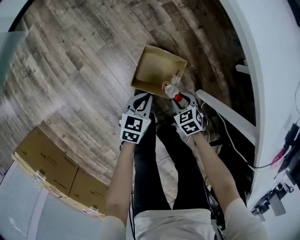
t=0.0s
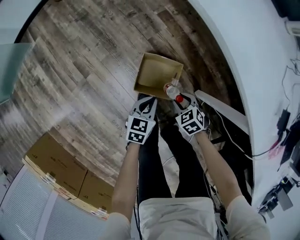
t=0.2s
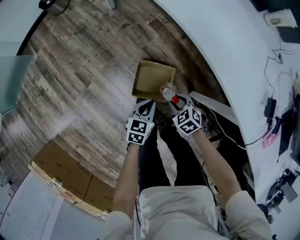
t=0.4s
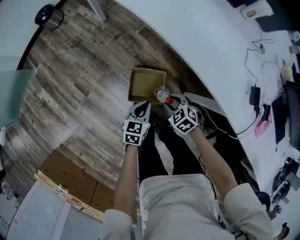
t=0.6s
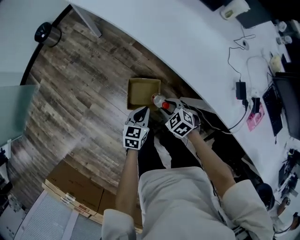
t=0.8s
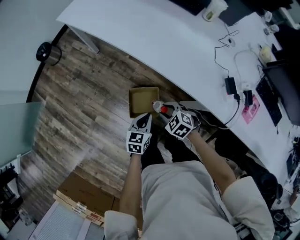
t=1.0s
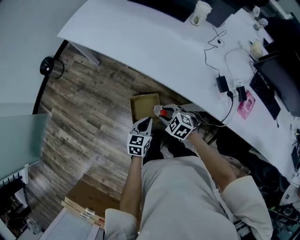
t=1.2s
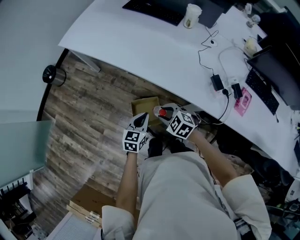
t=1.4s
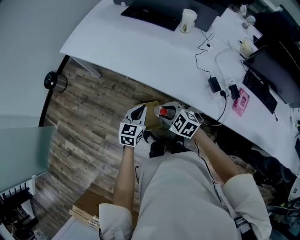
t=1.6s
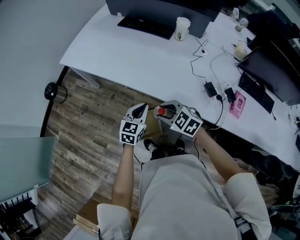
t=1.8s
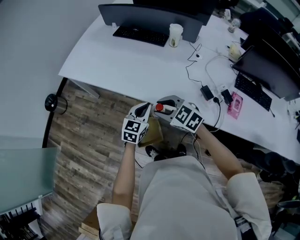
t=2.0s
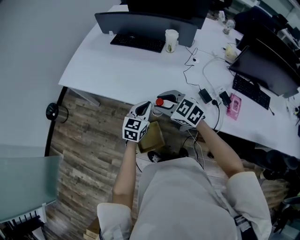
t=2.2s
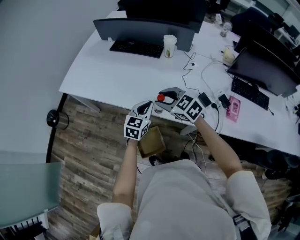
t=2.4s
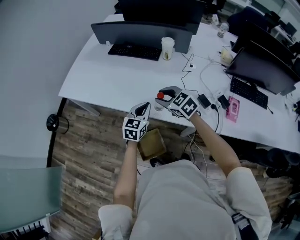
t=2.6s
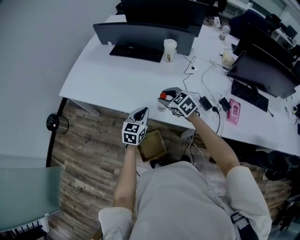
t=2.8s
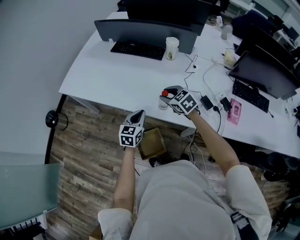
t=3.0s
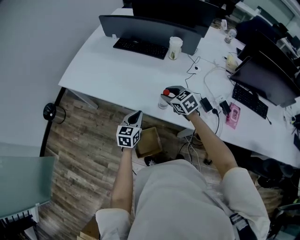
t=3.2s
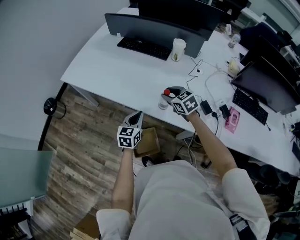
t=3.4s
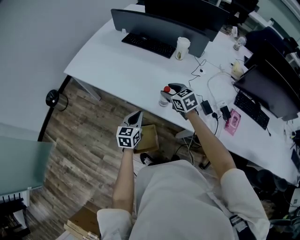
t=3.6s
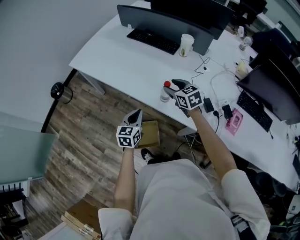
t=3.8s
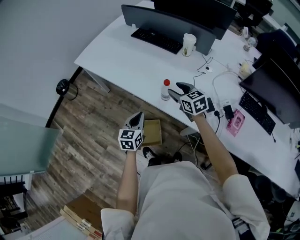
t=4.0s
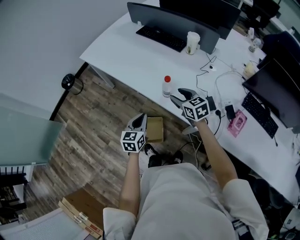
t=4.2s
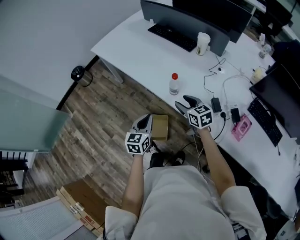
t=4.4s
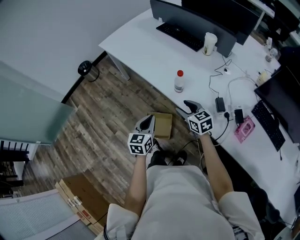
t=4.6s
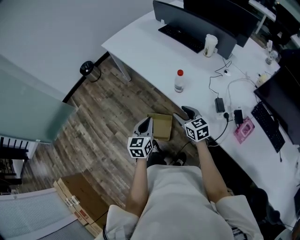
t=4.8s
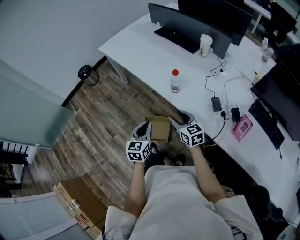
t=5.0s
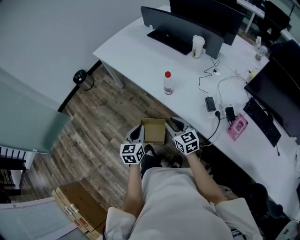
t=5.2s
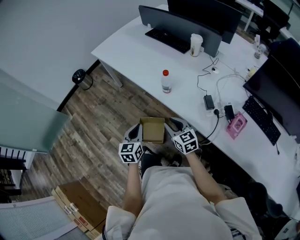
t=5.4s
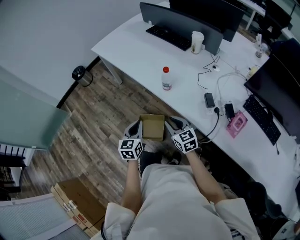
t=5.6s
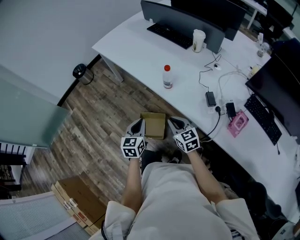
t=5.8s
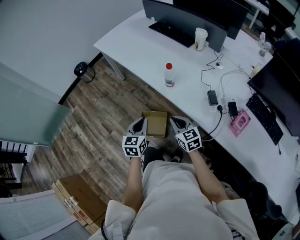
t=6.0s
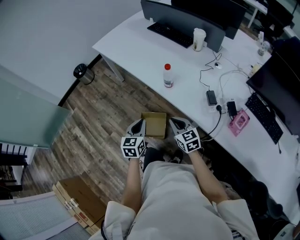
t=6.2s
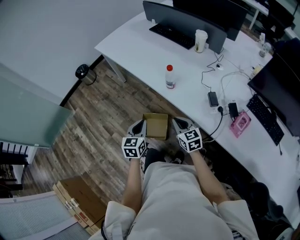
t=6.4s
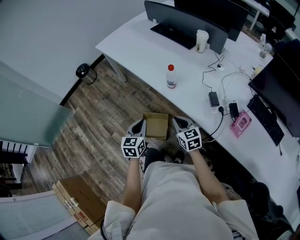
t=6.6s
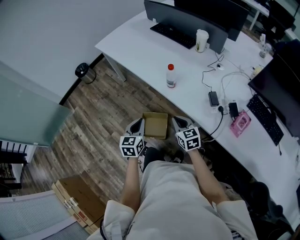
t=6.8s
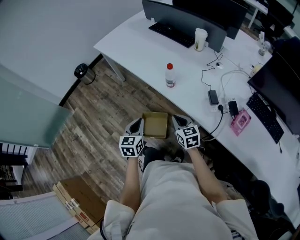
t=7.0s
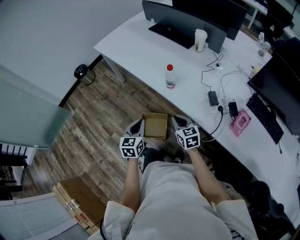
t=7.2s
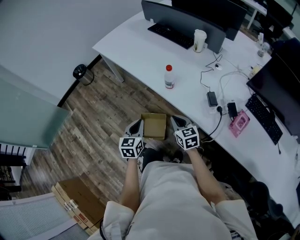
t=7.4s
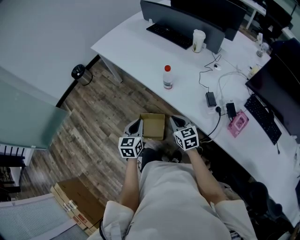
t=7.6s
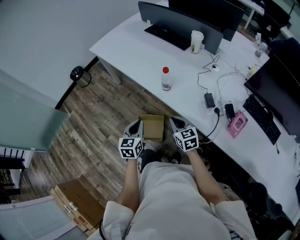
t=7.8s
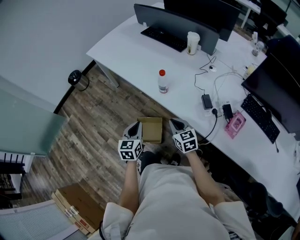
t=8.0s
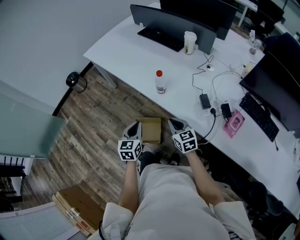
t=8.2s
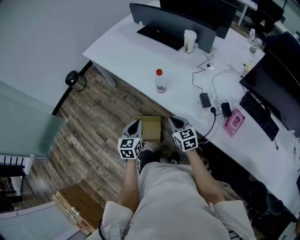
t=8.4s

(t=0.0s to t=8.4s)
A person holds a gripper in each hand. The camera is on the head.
t=0.0s - t=1.4s: The grippers both shift upward by roughly 40 cm. The left gripper turns by approximately 20 degrees.
t=1.4s - t=2.8s: The left gripper shifts approximately 20 cm forward and upward. Meanwhile the right gripper moves forward, upward and to the right, about 25 cm, and changes its angle by some 30 degrees.
t=2.8s - t=4.2s: The left gripper moves backward, some 15 cm, and rotates roughly 30 degrees; the right gripper travels backward by approximately 5 cm.
t=4.2s - t=5.6s: The right gripper moves backward, roughly 15 cm, and closes up; the left gripper moves backward, about 10 cm.
t=5.6s - t=7.0s: The right gripper closes.
t=7.0s - t=8.4s: The grippers make only small movements.

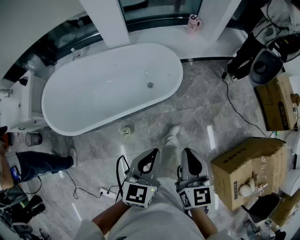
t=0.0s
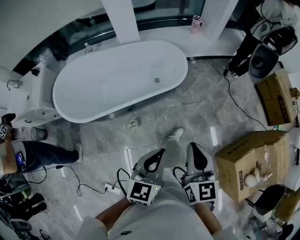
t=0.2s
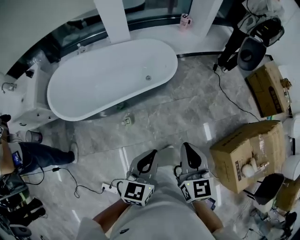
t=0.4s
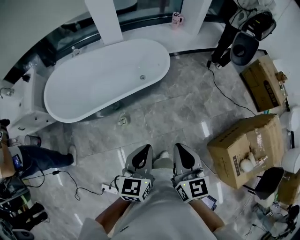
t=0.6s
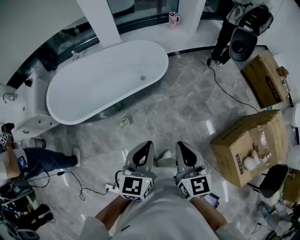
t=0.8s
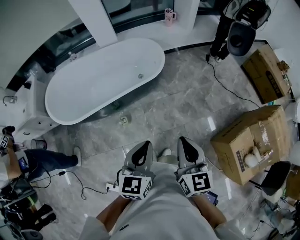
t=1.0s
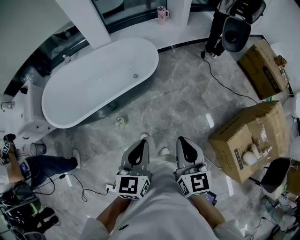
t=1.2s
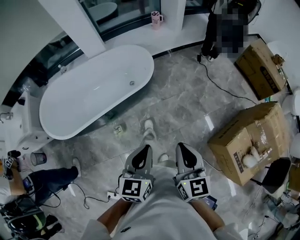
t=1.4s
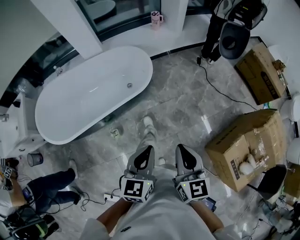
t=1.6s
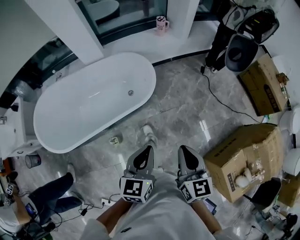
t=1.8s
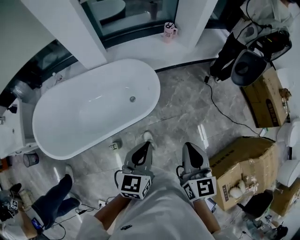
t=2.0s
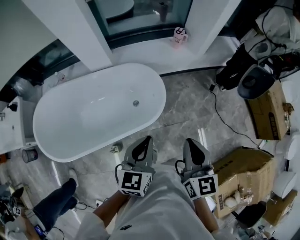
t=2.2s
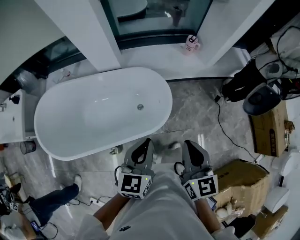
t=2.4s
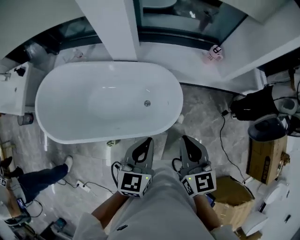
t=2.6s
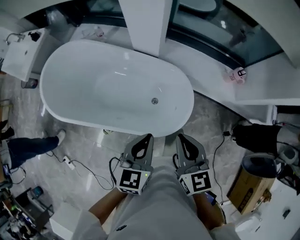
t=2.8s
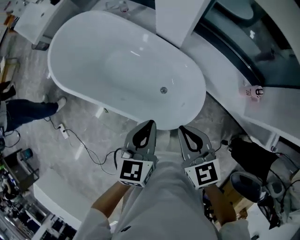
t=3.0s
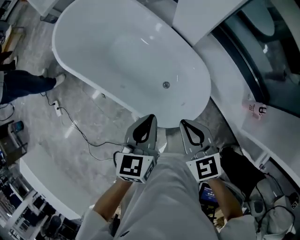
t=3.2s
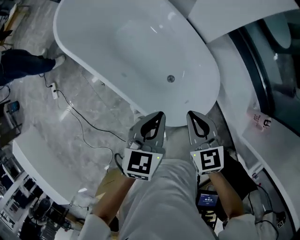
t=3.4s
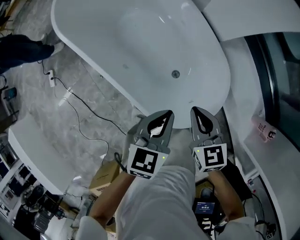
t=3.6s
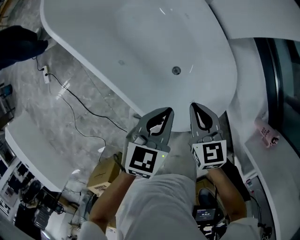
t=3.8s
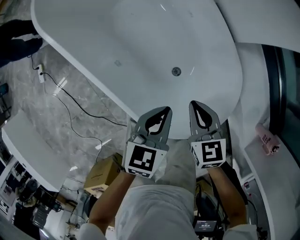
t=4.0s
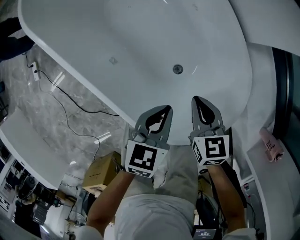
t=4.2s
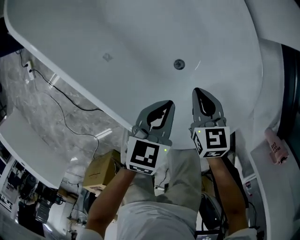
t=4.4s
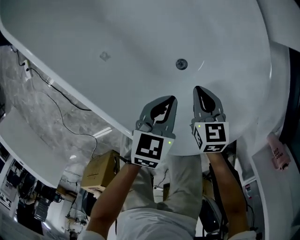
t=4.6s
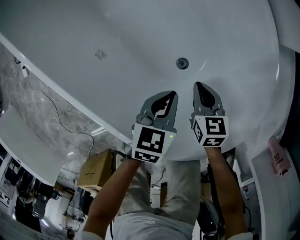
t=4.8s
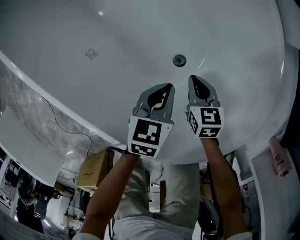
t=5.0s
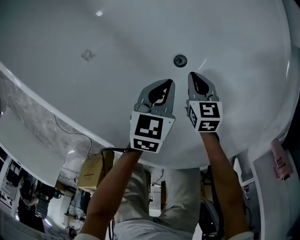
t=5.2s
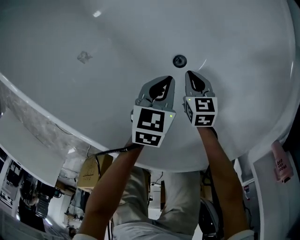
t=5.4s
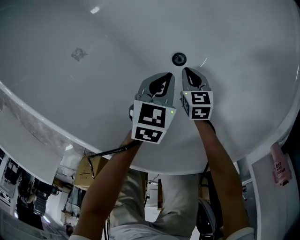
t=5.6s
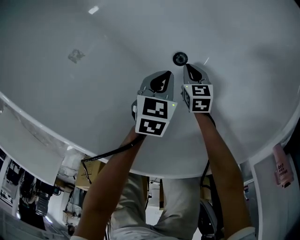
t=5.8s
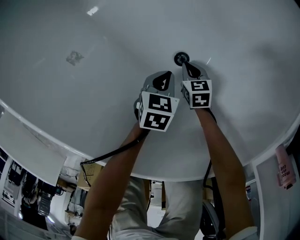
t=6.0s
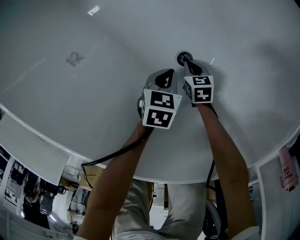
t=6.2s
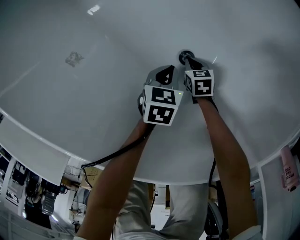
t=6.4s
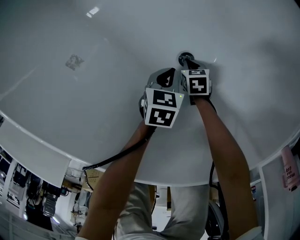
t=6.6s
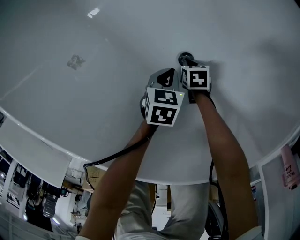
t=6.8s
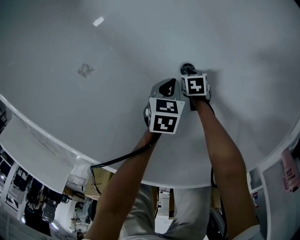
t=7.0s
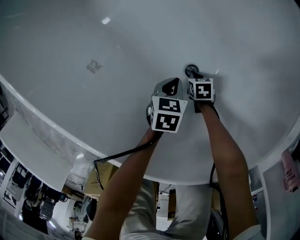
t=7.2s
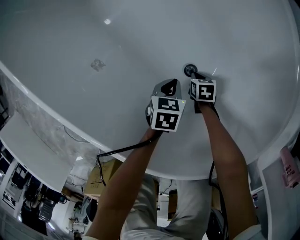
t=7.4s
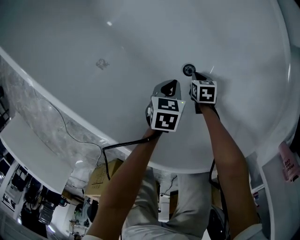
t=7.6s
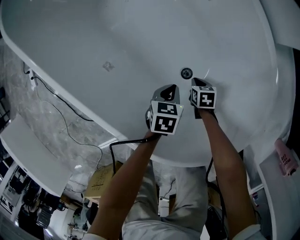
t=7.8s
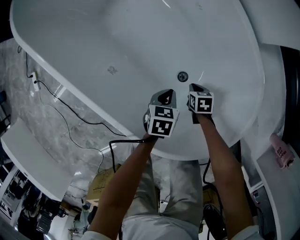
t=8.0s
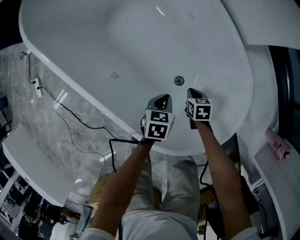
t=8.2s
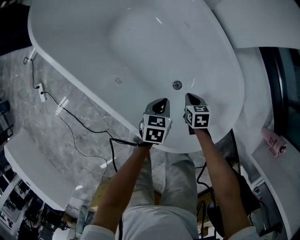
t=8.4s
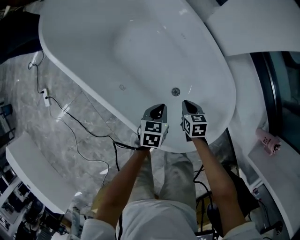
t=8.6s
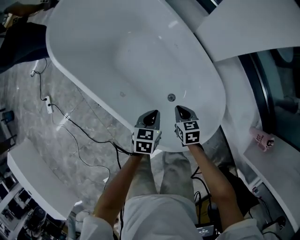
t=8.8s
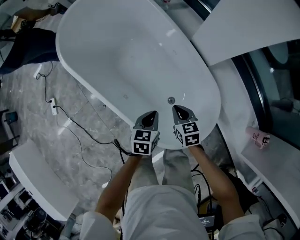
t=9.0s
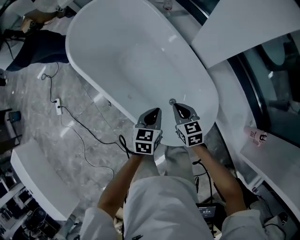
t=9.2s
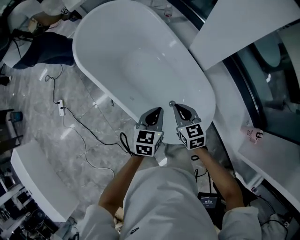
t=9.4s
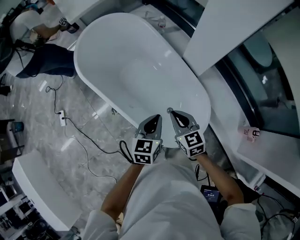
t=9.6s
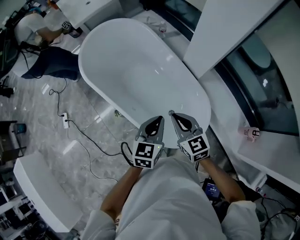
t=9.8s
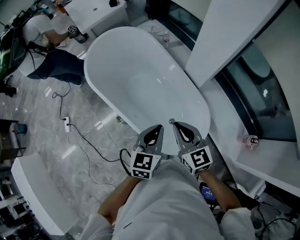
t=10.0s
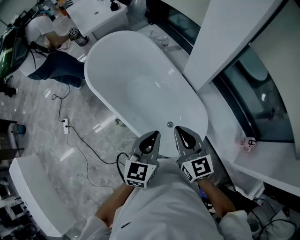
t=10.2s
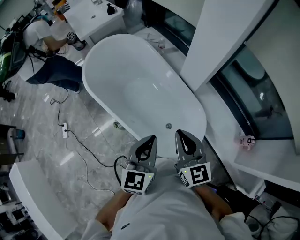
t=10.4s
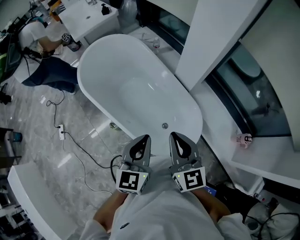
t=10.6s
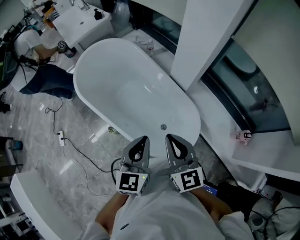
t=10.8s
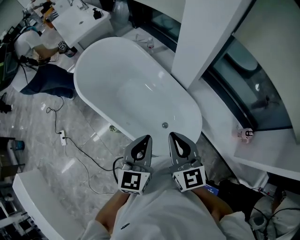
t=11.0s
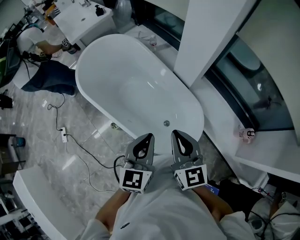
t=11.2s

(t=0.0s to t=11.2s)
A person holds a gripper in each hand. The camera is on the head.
t=0.0s - t=1.6s: Both grippers move to the right and backward, some 15 cm.
t=1.6s - t=3.2s: The pair of grippers is taken roughly 60 cm. The left gripper turns by approximately 70 degrees; the right gripper rotates roughly 90 degrees.
t=3.2s - t=4.8s: Both grippers move downward, approximately 50 cm. The right gripper turns by approximately 20 degrees.
t=4.8s - t=6.4s: Both grippers travel together downward, some 25 cm. The right gripper changes its angle by roughly 20 degrees.
t=6.4s - t=8.0s: Both grippers travel together upward, some 20 cm.
t=8.0s - t=9.6s: The grippers both shift upward by approximately 60 cm. The left gripper turns by approximately 30 degrees. The right gripper tips its fingers upward by roughly 40 degrees.
t=9.6s - t=11.2s: The right gripper shifts roughly 20 cm upward, and turns by approximately 30 degrees; the left gripper is displaced upward and backward by about 15 cm.

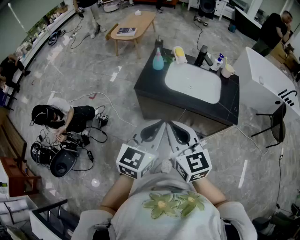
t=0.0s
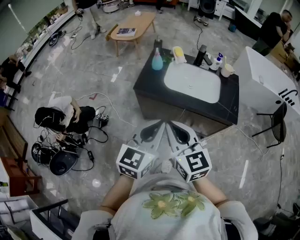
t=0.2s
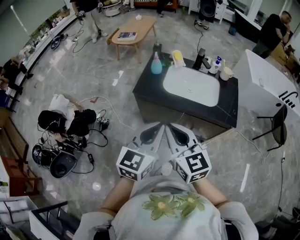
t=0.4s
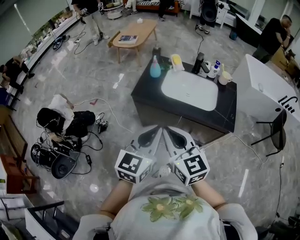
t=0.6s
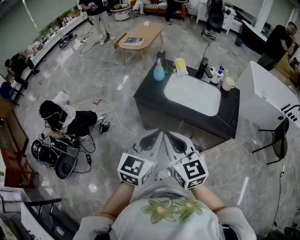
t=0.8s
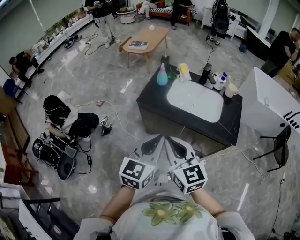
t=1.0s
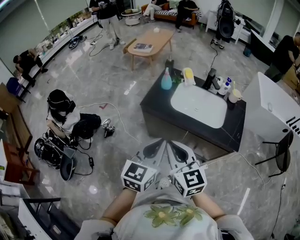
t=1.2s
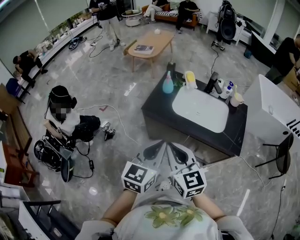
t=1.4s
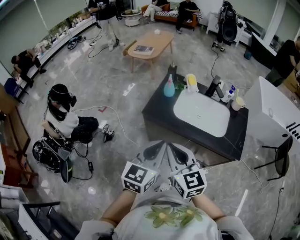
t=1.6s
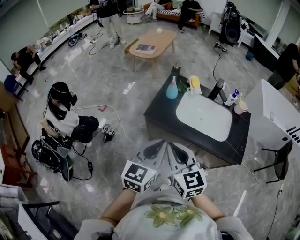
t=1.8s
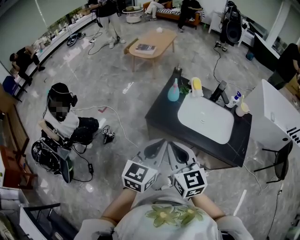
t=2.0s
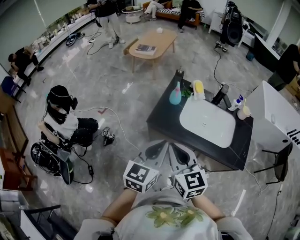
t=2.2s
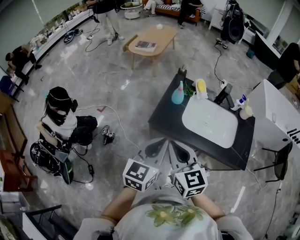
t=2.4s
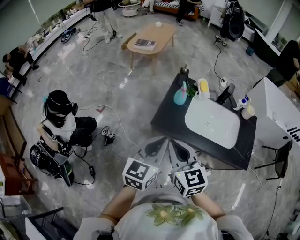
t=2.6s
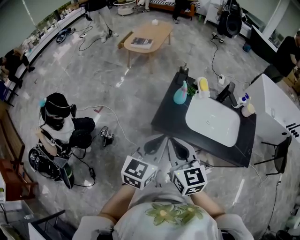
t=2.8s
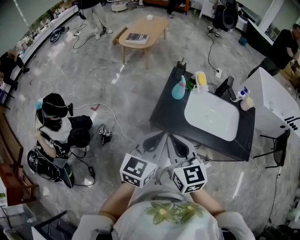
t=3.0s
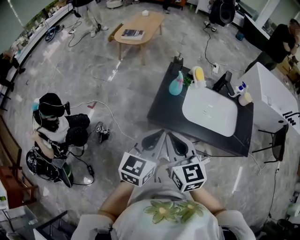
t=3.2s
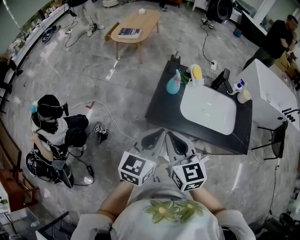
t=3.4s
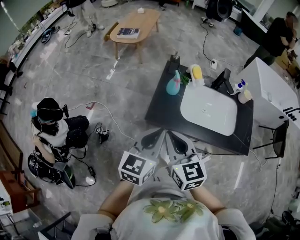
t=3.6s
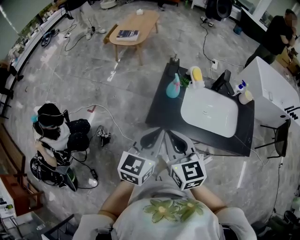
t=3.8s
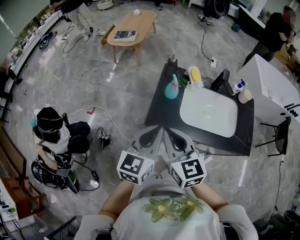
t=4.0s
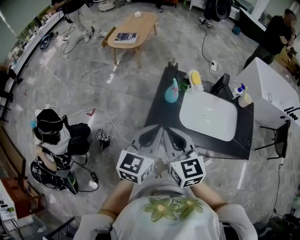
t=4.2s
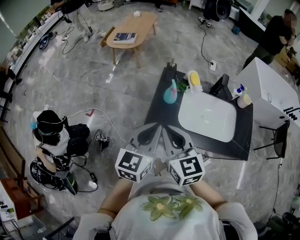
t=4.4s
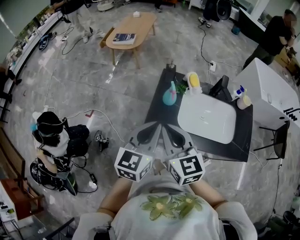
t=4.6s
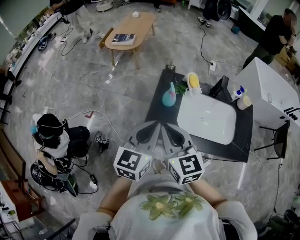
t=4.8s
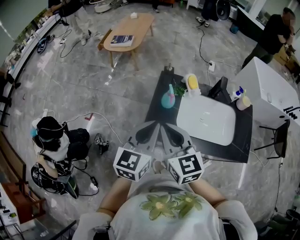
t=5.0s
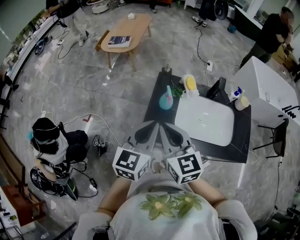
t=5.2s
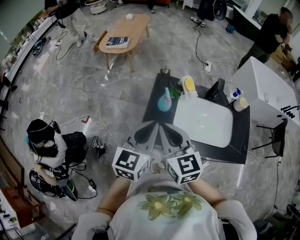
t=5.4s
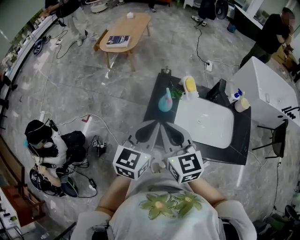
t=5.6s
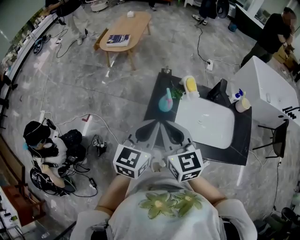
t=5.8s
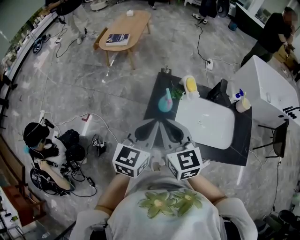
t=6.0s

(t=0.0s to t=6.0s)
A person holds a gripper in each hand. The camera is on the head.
t=0.0s - t=1.6s: The two grippers go approximately 5 cm forward.
t=1.6s - t=3.0s: Both grippers move forward and to the left, roughly 15 cm.
t=3.0s - t=4.4s: Both grippers move forward, some 10 cm.
t=4.4s - t=6.0s: Both grippers travel together forward, roughly 10 cm.
